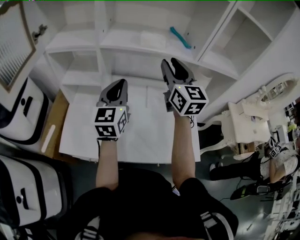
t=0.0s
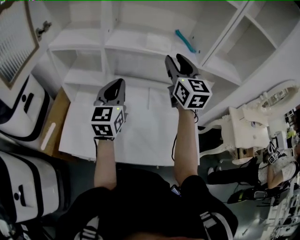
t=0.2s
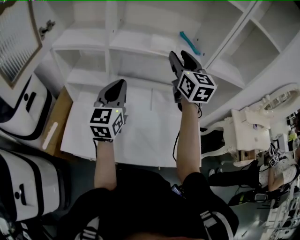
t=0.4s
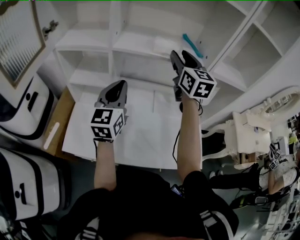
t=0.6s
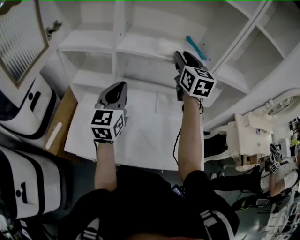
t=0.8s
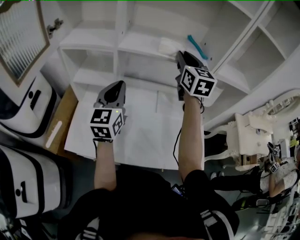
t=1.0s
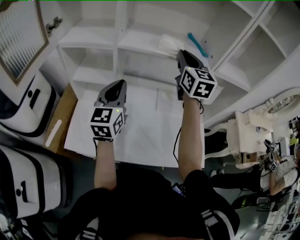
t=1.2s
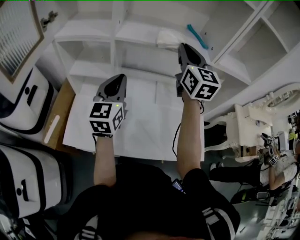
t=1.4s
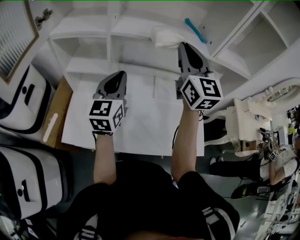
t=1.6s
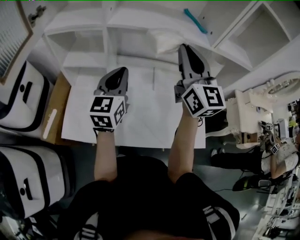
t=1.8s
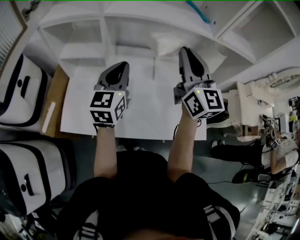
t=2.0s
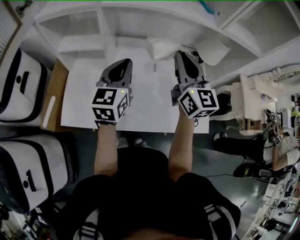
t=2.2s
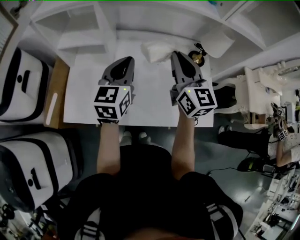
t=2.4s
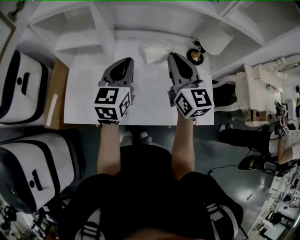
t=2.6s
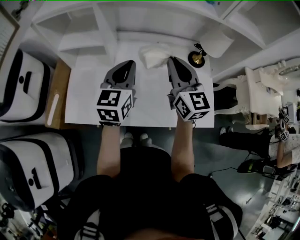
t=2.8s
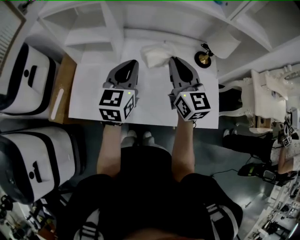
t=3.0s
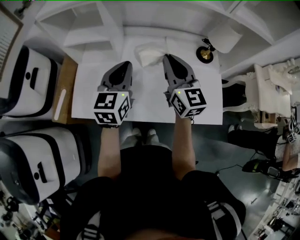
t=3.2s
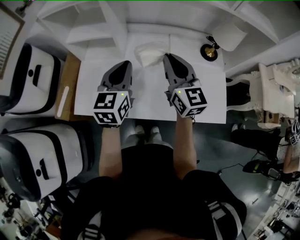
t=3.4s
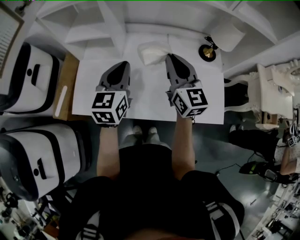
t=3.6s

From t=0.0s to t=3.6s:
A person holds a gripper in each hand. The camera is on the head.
From t=0.0s to t=1.8s: The right gripper reaches some 10 cm forward, then returns, and closes its fingers.
From t=1.8s to t=3.6s: The left gripper is displaced downward and backward by about 10 cm. The right gripper shifts approximately 20 cm downward.

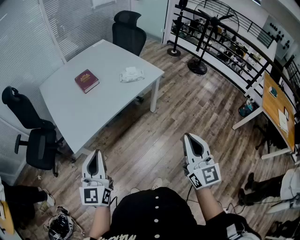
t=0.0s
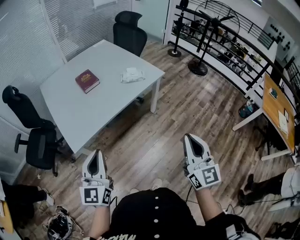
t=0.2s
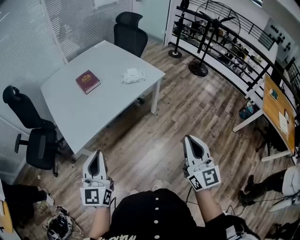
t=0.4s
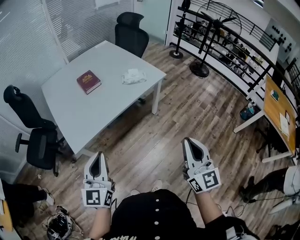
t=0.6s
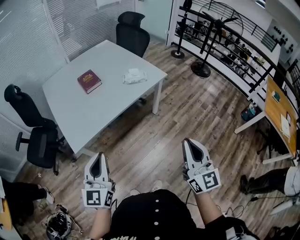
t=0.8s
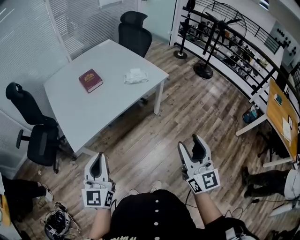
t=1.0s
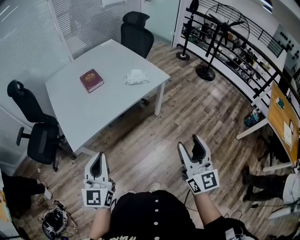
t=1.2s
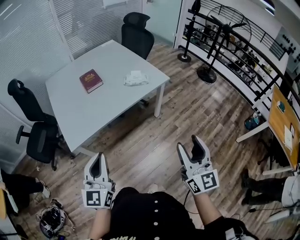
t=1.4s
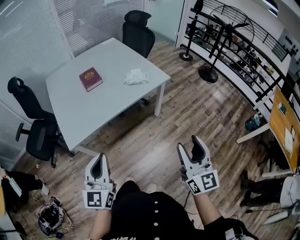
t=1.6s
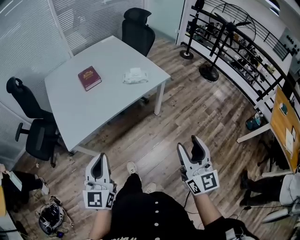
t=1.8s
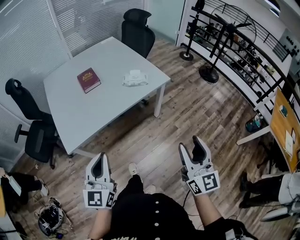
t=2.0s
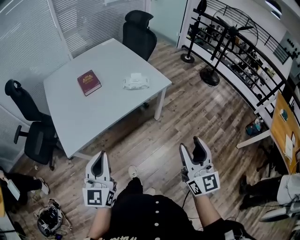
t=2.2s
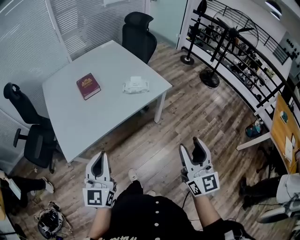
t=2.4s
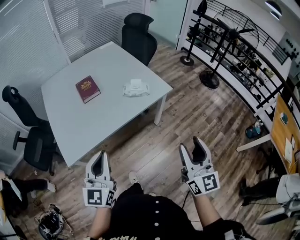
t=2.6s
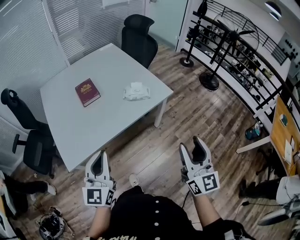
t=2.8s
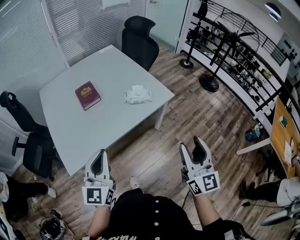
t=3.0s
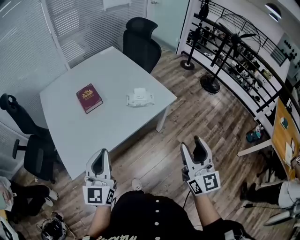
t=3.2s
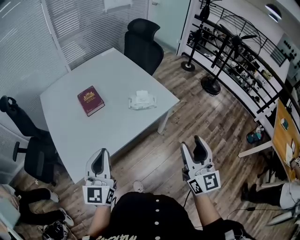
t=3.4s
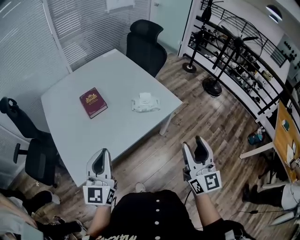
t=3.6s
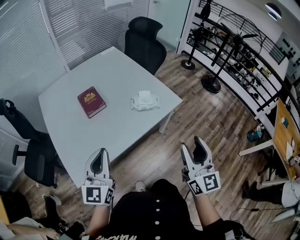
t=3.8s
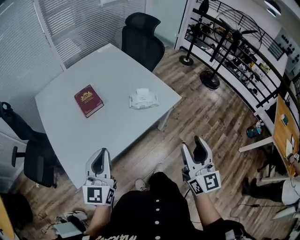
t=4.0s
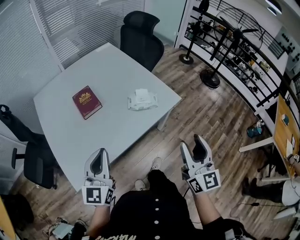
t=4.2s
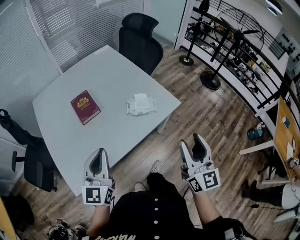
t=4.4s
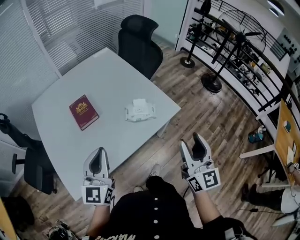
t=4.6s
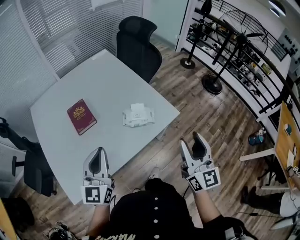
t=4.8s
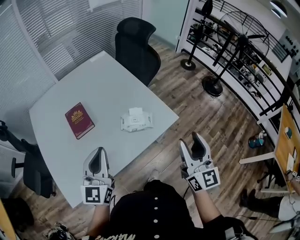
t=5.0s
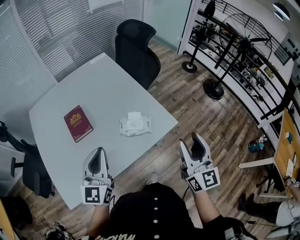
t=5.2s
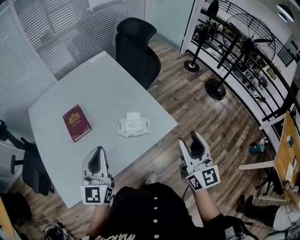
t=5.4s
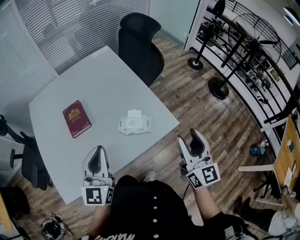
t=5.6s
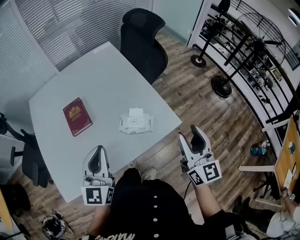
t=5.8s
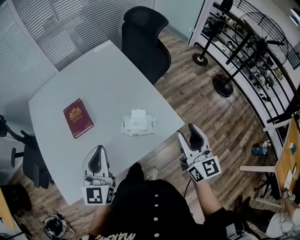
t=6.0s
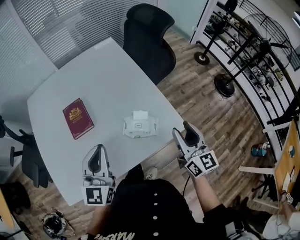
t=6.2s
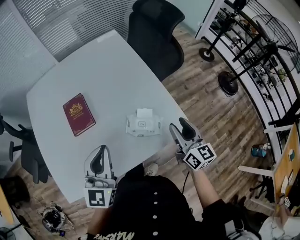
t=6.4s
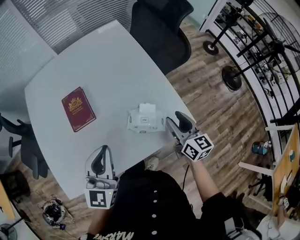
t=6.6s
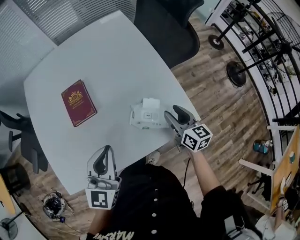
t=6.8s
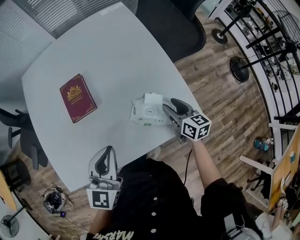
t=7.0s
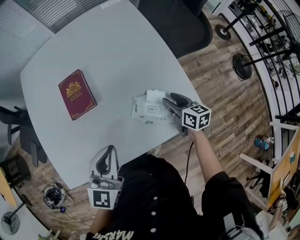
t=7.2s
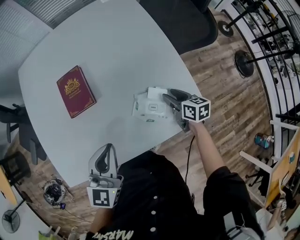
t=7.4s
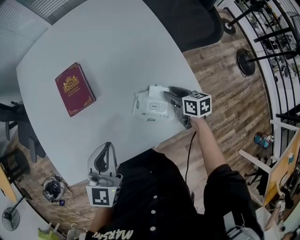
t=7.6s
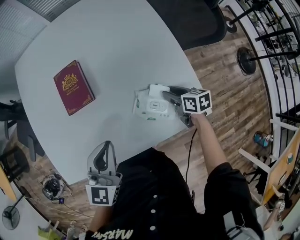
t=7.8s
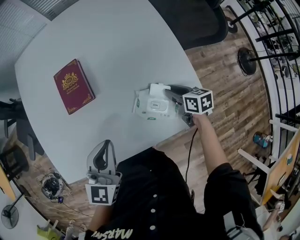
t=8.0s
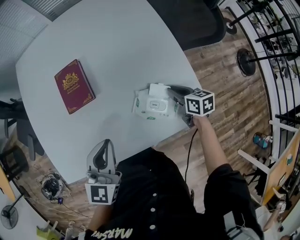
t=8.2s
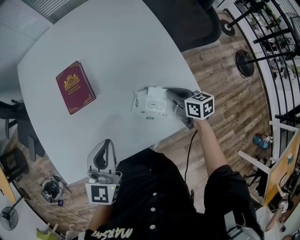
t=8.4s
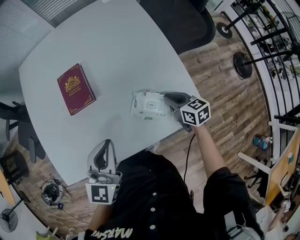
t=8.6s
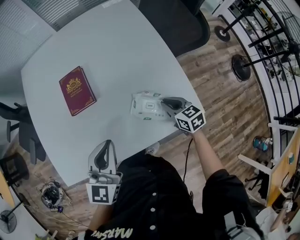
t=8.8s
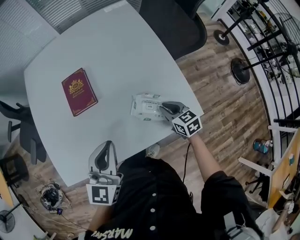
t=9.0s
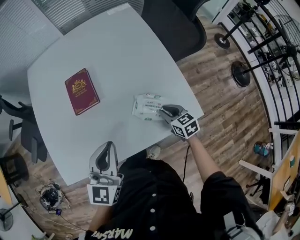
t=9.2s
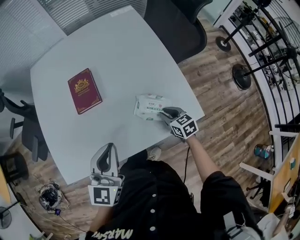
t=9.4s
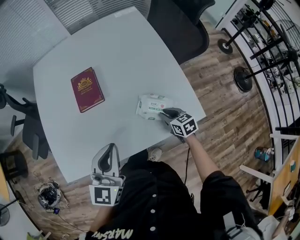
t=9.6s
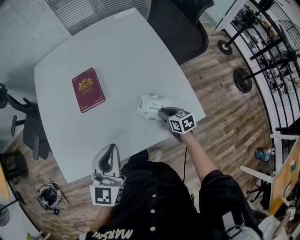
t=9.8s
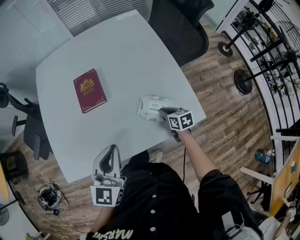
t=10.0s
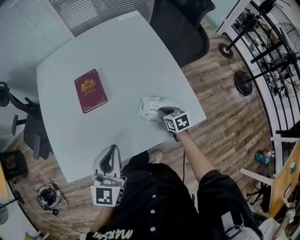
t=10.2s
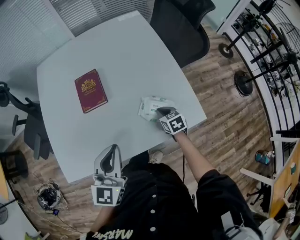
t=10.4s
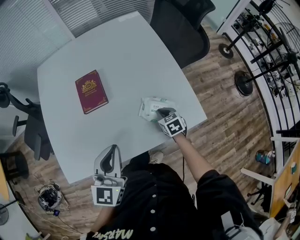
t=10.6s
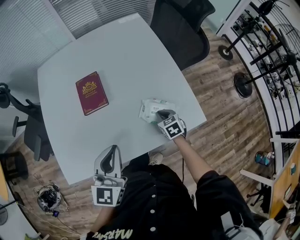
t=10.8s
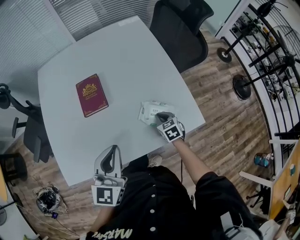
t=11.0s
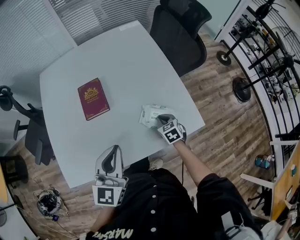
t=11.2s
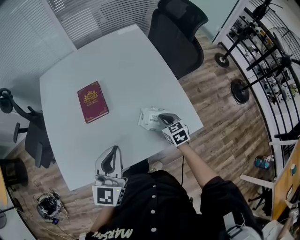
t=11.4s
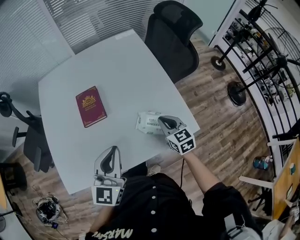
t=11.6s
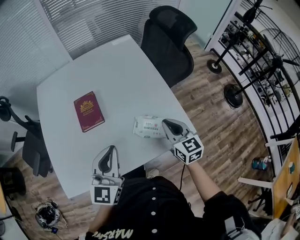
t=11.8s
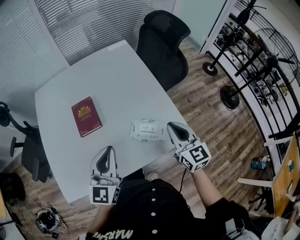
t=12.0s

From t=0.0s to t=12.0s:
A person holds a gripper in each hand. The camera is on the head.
From t=0.0s to t=1.6s: The grippers both shift to the right by approximately 5 cm. The right gripper opens its fingers.
From t=1.6s to t=3.0s: Both grippers move forward, approximately 15 cm.
From t=3.0s to t=4.4s: Both grippers travel together forward, roughly 15 cm.
From t=4.4s to t=6.0s: The right gripper moves forward, about 20 cm. The left gripper heads forward and to the right, covering about 20 cm.
From t=6.0s to t=7.6s: The left gripper heads downward, covering approximately 10 cm. The right gripper shifts roughly 35 cm downward and forward, and tips its fingers downward by roughly 40 degrees.
From t=7.6s to t=9.0s: The right gripper travels backward by approximately 5 cm, turns by some 30 degrees, and closes up.
From t=9.0s to t=10.4s: The right gripper changes place by some 5 cm.
From t=10.4s to t=12.0s: The right gripper goes some 25 cm upward, and tilts its fingers about 40 degrees upward; the left gripper moves approximately 5 cm.

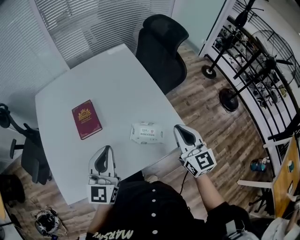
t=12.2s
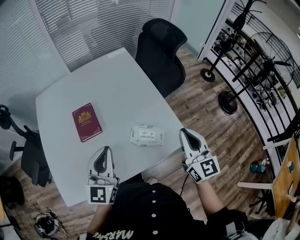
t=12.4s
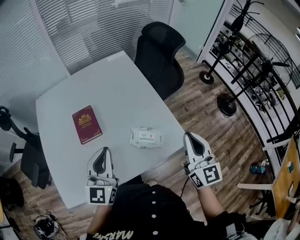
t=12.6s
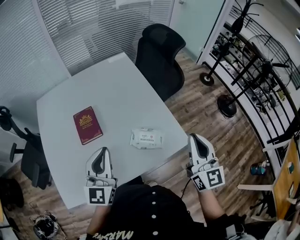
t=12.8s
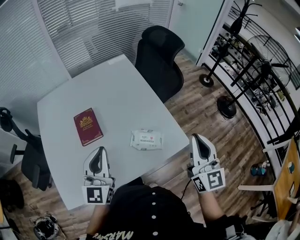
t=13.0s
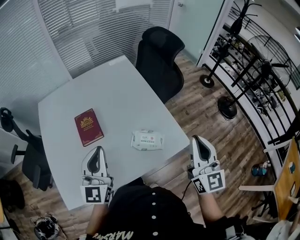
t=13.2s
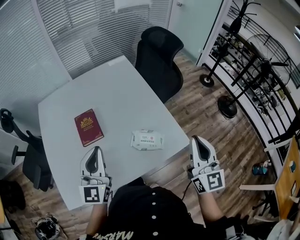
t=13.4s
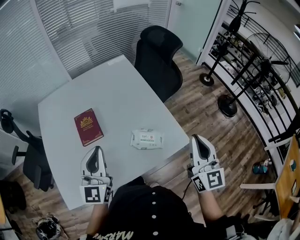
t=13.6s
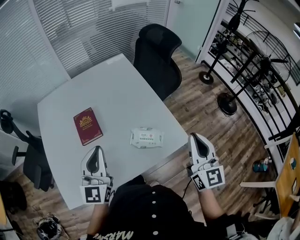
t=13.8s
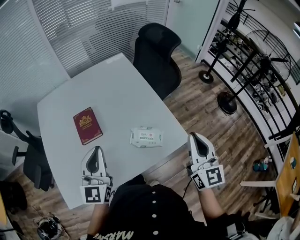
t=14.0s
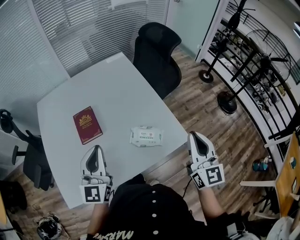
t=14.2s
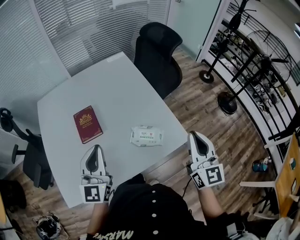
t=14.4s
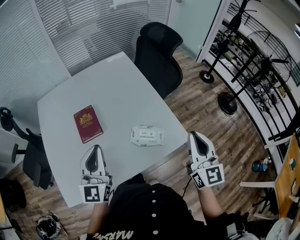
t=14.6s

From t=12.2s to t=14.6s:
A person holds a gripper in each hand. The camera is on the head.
From t=12.2s to t=13.4s: The right gripper heads upward and backward, covering approximately 10 cm.
From t=13.4s to t=14.6s: Both grippers stay put.

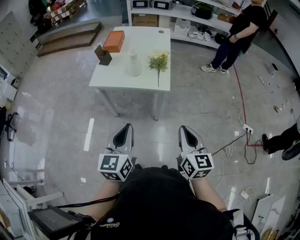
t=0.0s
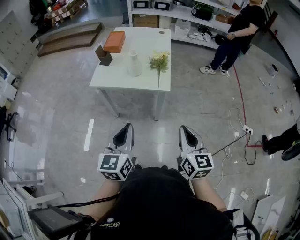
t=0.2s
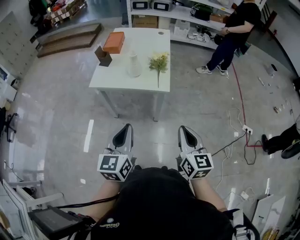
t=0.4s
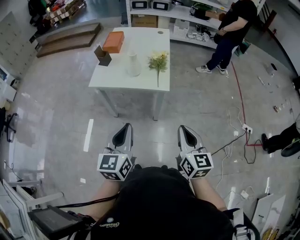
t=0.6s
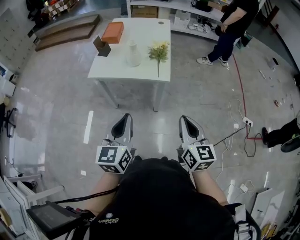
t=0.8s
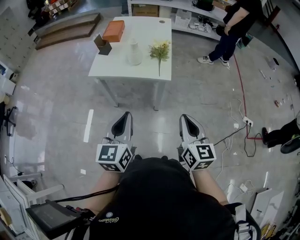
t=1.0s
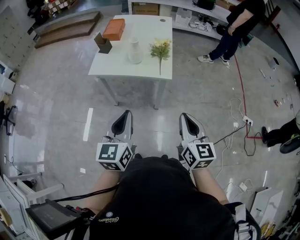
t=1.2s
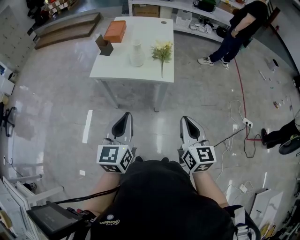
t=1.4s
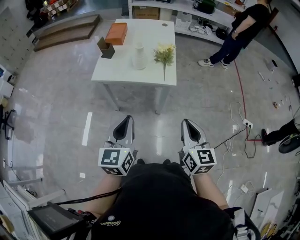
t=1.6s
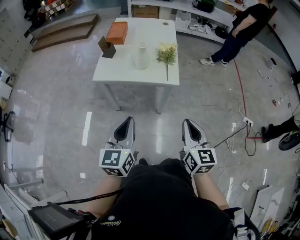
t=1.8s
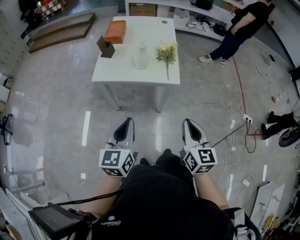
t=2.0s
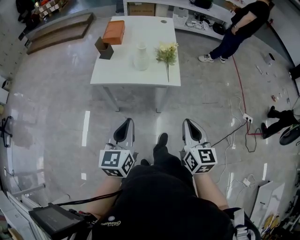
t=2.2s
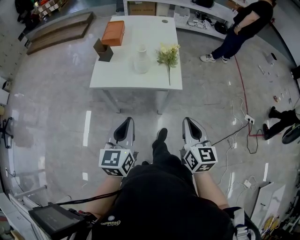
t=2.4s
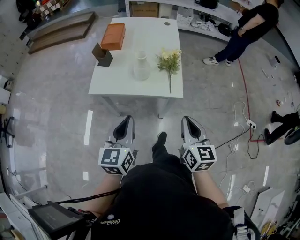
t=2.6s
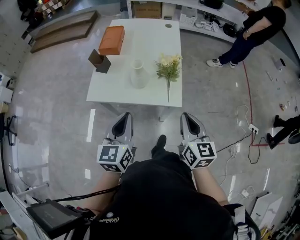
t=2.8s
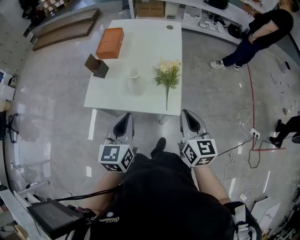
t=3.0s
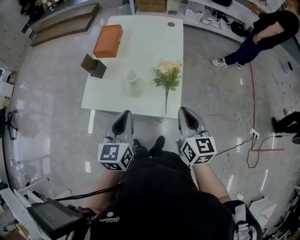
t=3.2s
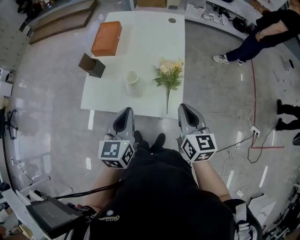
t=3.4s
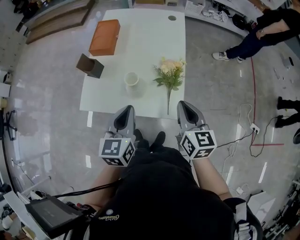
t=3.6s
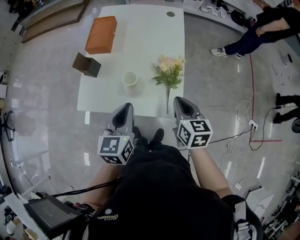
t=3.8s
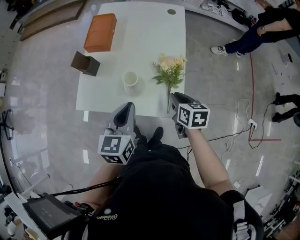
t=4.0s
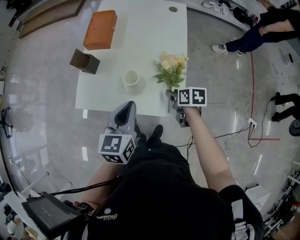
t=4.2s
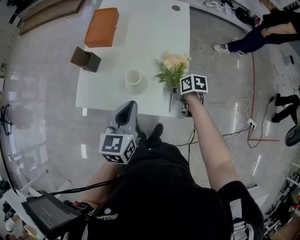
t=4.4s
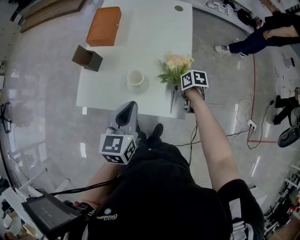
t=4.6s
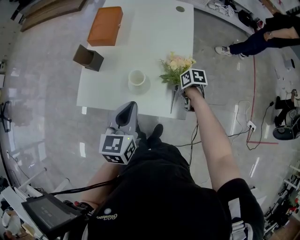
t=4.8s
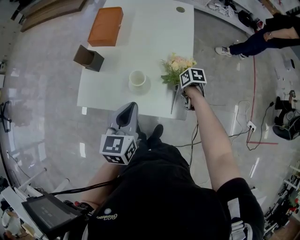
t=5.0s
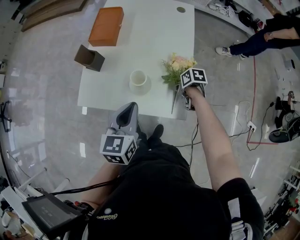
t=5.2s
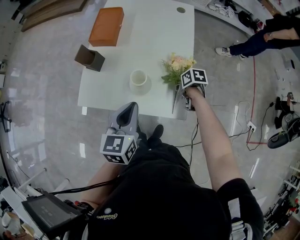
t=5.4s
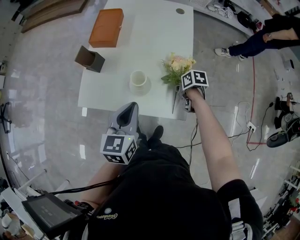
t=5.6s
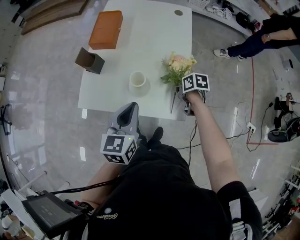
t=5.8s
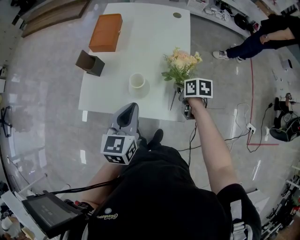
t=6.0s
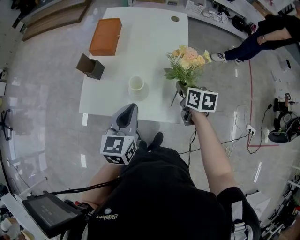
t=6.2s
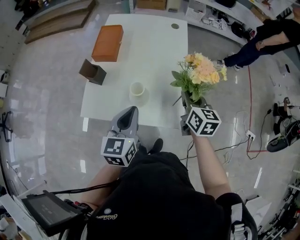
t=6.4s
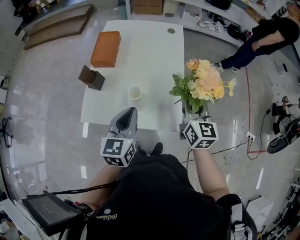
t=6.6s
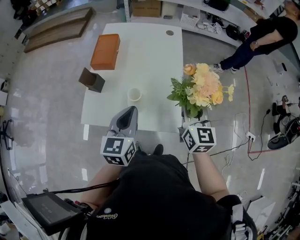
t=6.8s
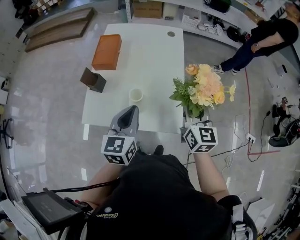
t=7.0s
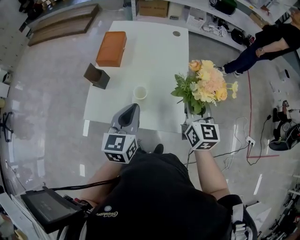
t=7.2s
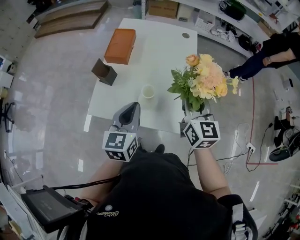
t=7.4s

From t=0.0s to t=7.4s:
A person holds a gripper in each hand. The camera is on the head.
From t=0.0s to t=1.4s: The grippers move only a little.
From t=1.4s to t=3.0s: The grippers both shift forward by about 30 cm.
From t=3.0s to t=4.4s: The left gripper travels forward and downward by approximately 15 cm. The right gripper moves downward and forward, some 30 cm, angles its fingers downward, by roughly 40 degrees, and opens its fingers.
From t=4.4s to t=6.0s: The right gripper ends up about 5 cm from where it was, and closes up.
From t=6.0s to t=7.4s: The left gripper goes about 5 cm upward; the right gripper is displaced upward by some 25 cm, and angles its fingers upward, by some 50 degrees.
